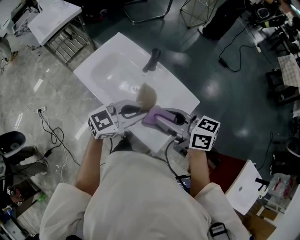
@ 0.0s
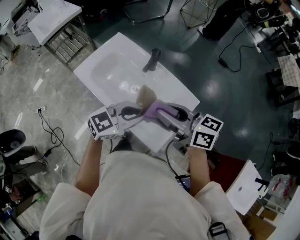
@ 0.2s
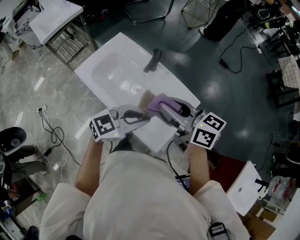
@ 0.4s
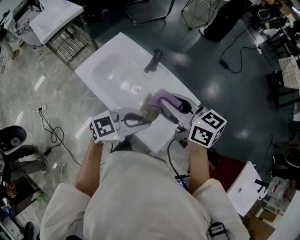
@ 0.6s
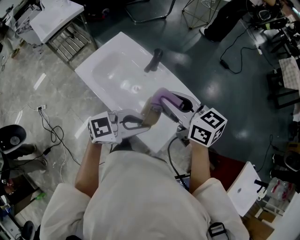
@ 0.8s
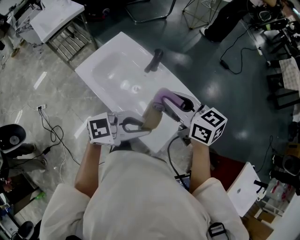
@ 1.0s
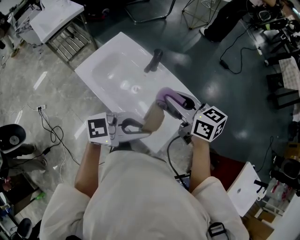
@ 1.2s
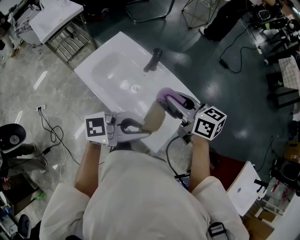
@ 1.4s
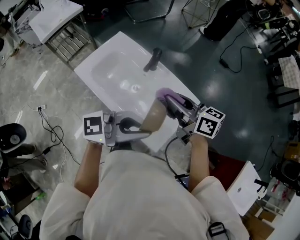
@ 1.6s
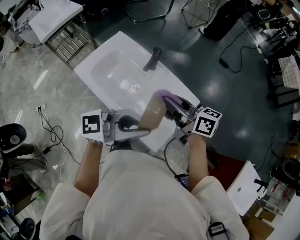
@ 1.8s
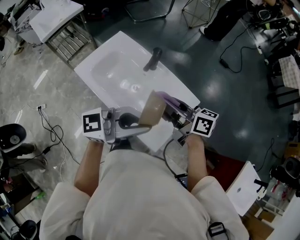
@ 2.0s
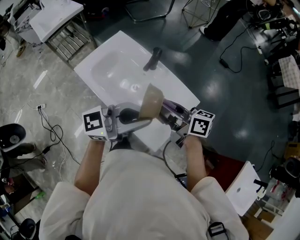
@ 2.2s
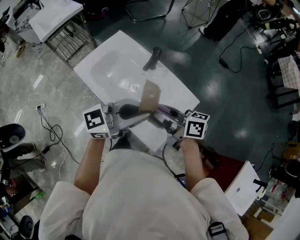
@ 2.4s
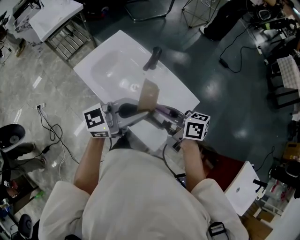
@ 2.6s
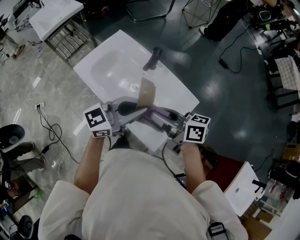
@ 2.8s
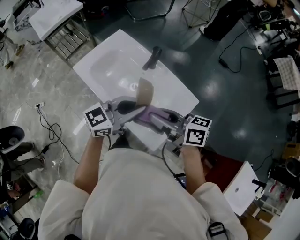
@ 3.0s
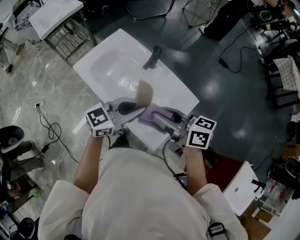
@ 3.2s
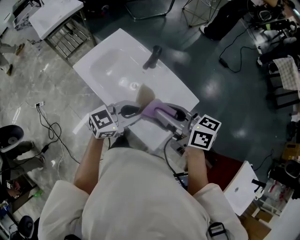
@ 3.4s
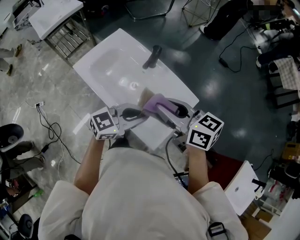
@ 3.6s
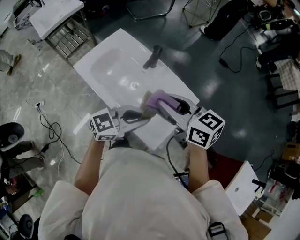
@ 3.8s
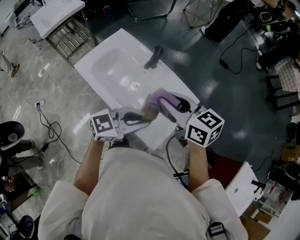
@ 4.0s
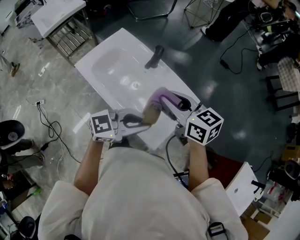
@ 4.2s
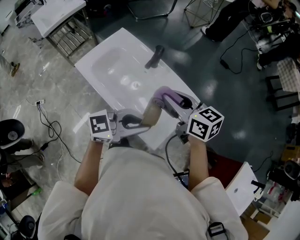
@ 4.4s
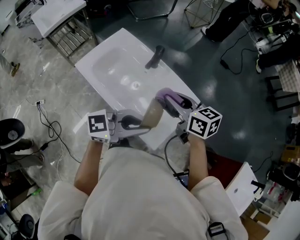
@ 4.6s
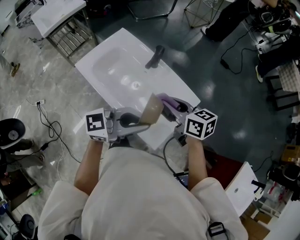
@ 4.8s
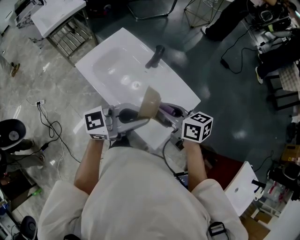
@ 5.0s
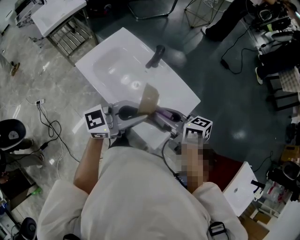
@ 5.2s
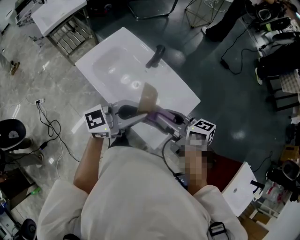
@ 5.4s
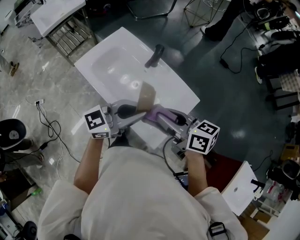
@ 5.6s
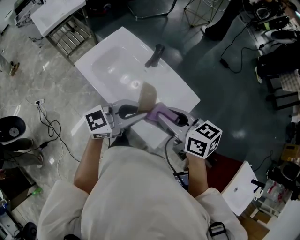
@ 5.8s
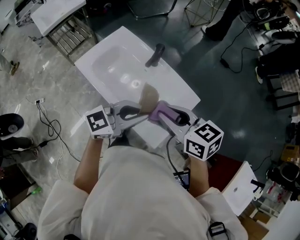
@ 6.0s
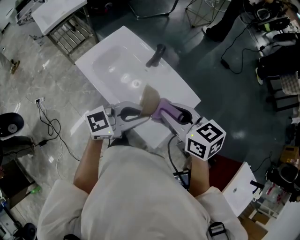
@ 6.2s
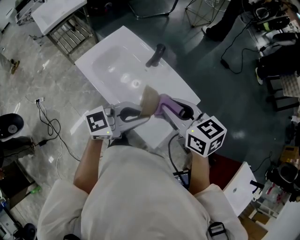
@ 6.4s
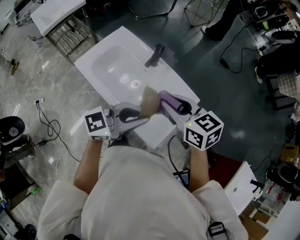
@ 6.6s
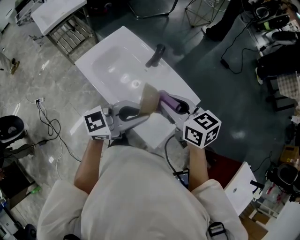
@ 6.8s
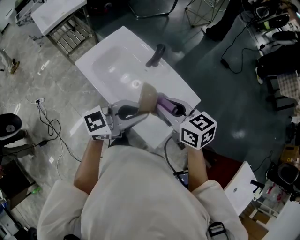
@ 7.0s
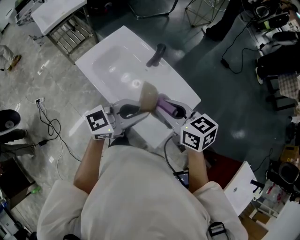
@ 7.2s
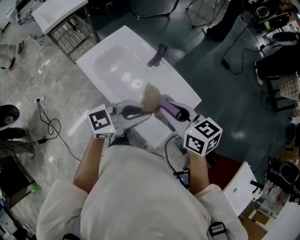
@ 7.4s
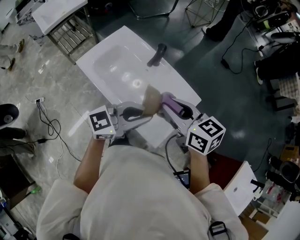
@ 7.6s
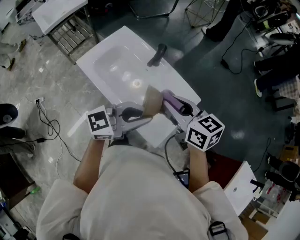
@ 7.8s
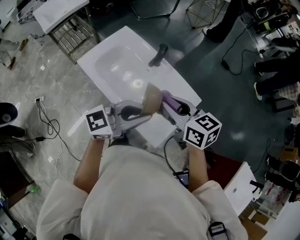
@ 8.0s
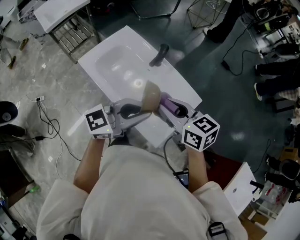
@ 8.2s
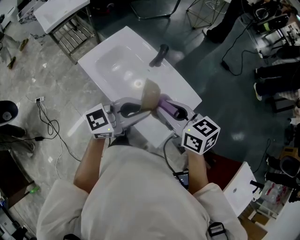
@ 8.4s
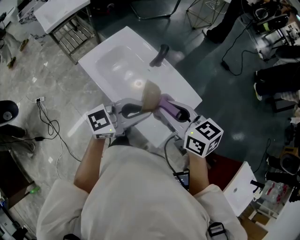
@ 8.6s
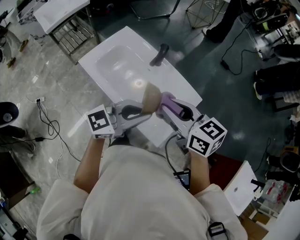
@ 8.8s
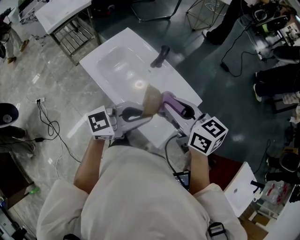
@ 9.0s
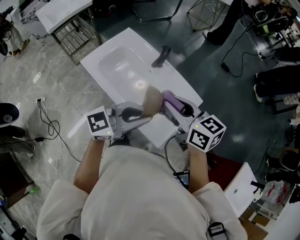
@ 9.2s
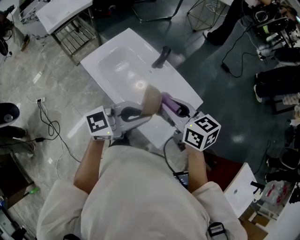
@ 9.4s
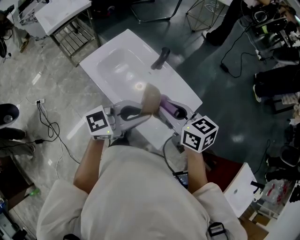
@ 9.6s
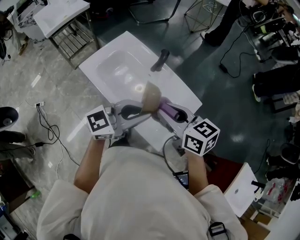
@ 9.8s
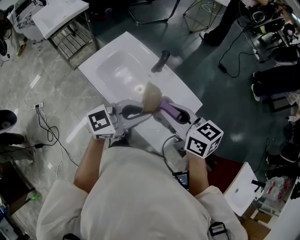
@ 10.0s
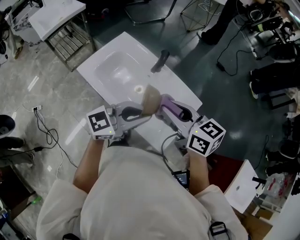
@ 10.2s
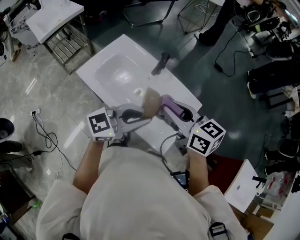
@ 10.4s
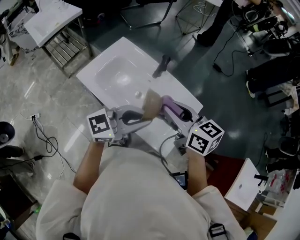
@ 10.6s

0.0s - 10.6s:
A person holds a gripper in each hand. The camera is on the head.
0.0s - 1.6s: The left gripper shifts roughly 10 cm upward, and rotates about 30 degrees. The right gripper shifts by some 5 cm.
1.6s - 3.0s: The left gripper ends up some 10 cm from where it was, and swivels approximately 30 degrees. Meanwhile the right gripper shifts by some 10 cm.
3.0s - 4.6s: The left gripper shifts by some 10 cm. The right gripper ends up approximately 10 cm from where it was, and changes its angle by about 30 degrees.
4.6s - 6.0s: The right gripper changes place by some 10 cm.
6.0s - 9.0s: There are only small adjustments of the grippers.
9.0s - 10.6s: Both grippers travel together to the left, some 5 cm.

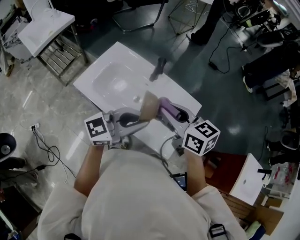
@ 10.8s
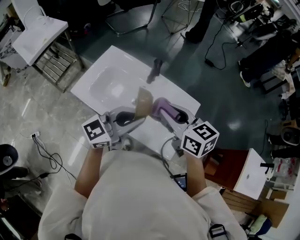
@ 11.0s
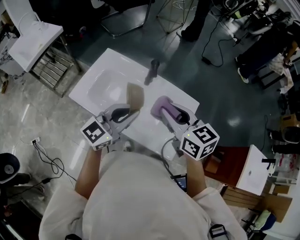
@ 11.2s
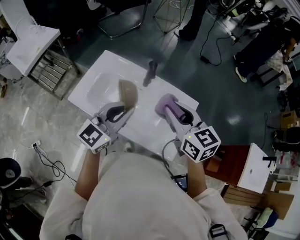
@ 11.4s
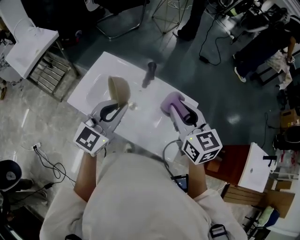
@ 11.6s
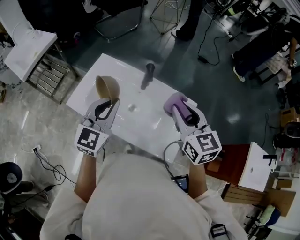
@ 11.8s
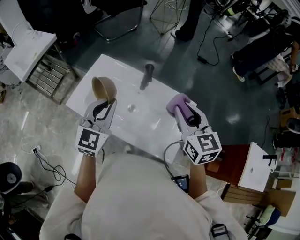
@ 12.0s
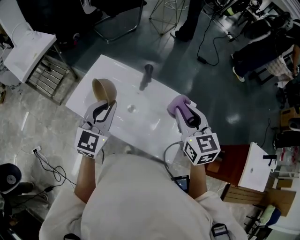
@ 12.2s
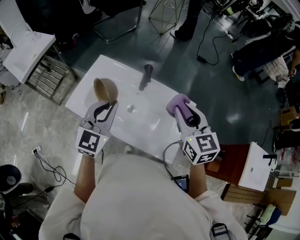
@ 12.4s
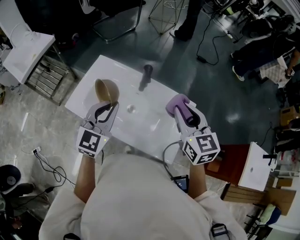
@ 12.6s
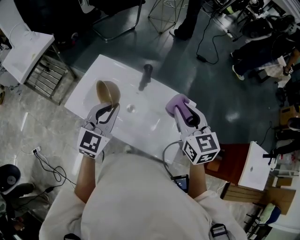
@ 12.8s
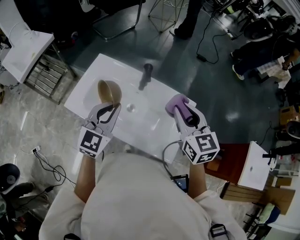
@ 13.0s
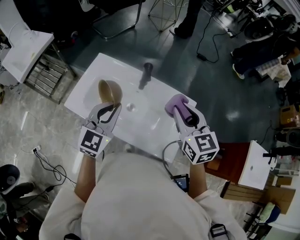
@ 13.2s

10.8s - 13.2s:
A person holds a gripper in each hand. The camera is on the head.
10.8s - 12.0s: The right gripper shifts approximately 10 cm to the right and forward, and swivels about 30 degrees; the left gripper travels forward and to the left by approximately 15 cm, and changes its angle by approximately 50 degrees.
12.0s - 13.2s: The grippers stay close to where they were, moving slightly.

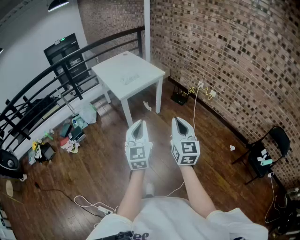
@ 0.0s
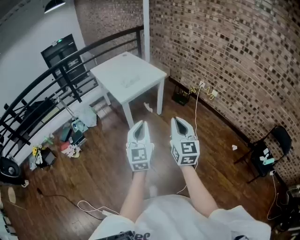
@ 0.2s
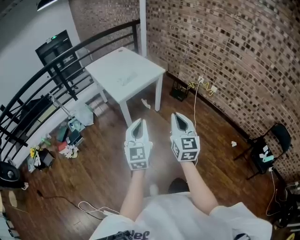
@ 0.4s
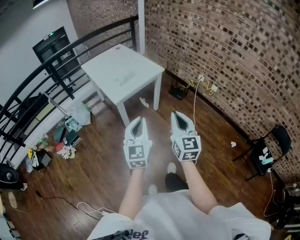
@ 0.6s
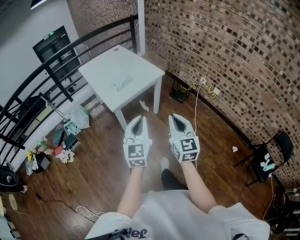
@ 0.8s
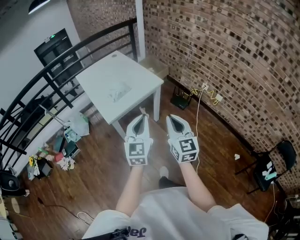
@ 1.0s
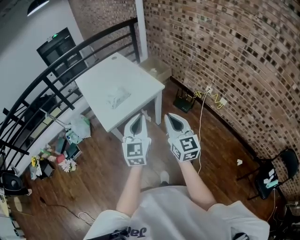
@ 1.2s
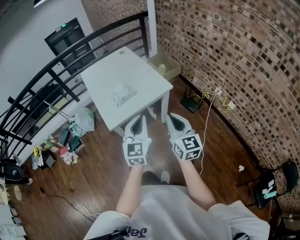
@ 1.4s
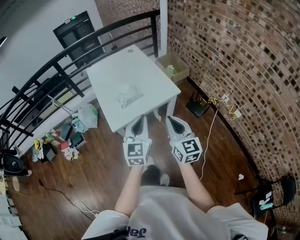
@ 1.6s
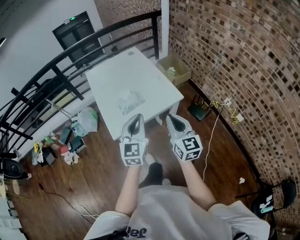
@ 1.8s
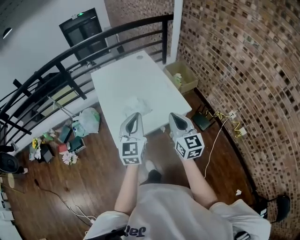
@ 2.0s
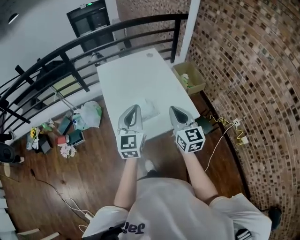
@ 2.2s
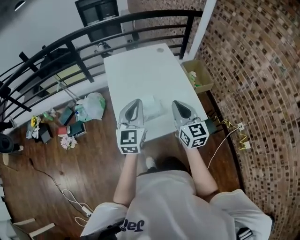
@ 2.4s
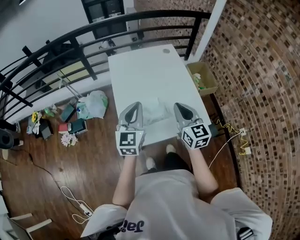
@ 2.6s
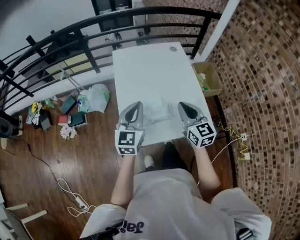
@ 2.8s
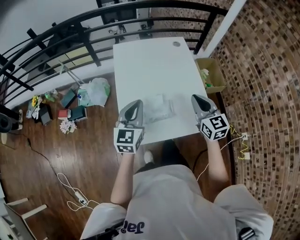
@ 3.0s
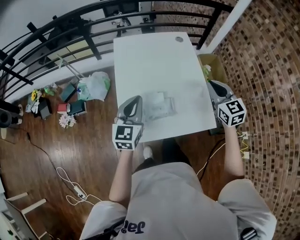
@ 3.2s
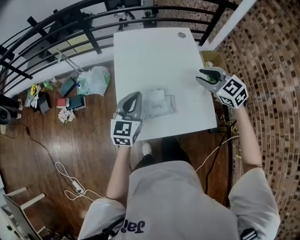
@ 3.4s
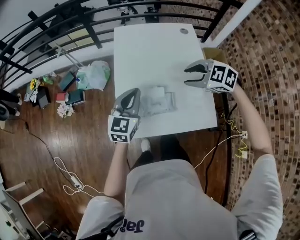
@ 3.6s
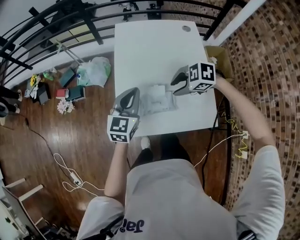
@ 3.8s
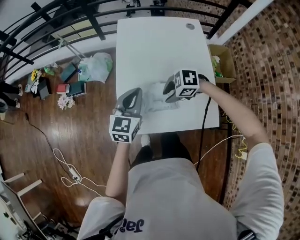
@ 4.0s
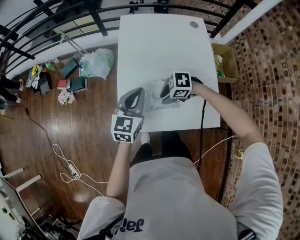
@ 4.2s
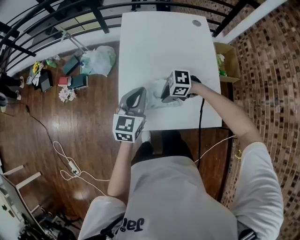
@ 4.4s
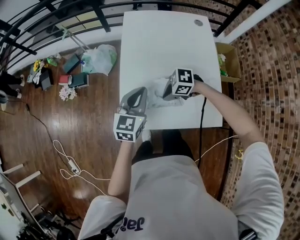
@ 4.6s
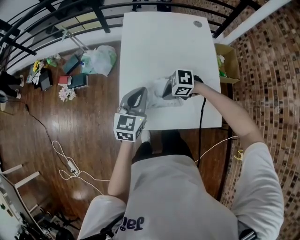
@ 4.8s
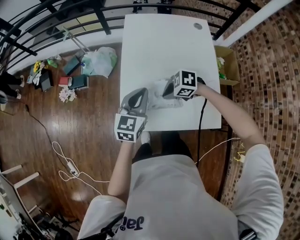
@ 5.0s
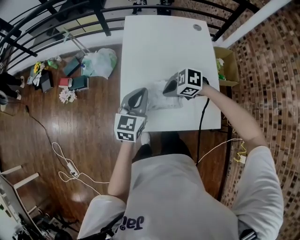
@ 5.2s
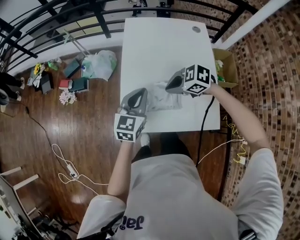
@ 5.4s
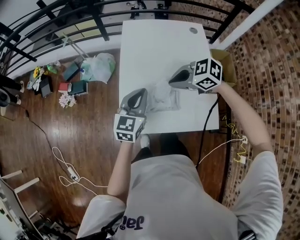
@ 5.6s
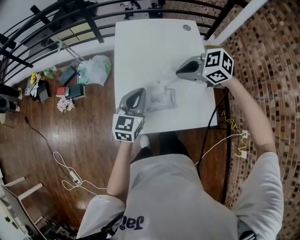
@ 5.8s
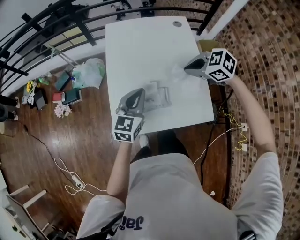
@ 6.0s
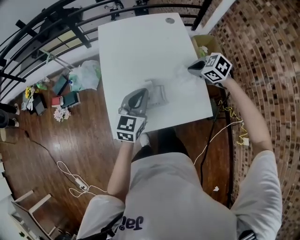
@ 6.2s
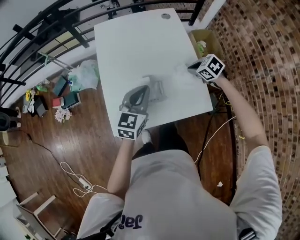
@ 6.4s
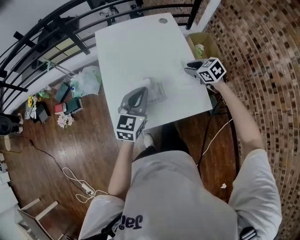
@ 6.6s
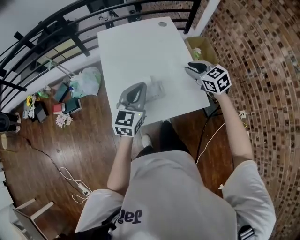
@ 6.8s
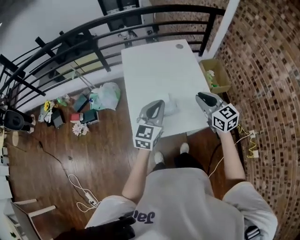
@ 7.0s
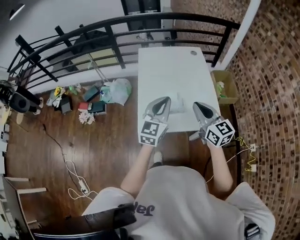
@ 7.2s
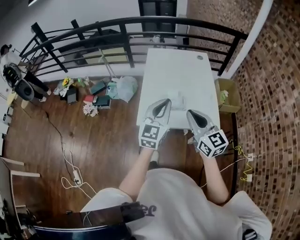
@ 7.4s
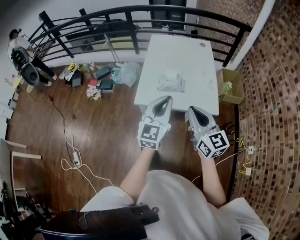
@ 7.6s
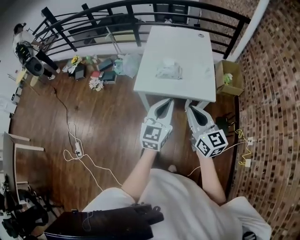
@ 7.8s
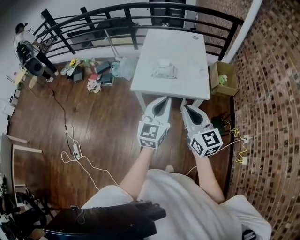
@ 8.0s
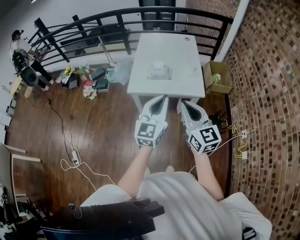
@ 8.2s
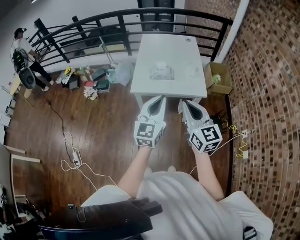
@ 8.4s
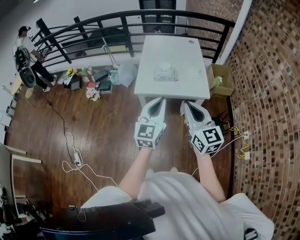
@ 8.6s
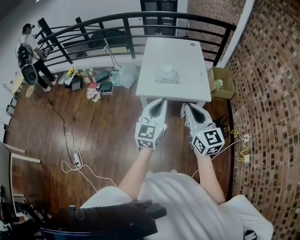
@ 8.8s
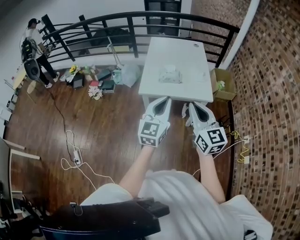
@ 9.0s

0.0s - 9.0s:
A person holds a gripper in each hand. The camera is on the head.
0.0s - 1.6s: The two grippers travel together, forward, roughly 50 cm. The right gripper swivels some 20 degrees.
1.6s - 3.0s: The left gripper heads forward and to the left, covering about 35 cm, while the right gripper shifts approximately 40 cm forward, and swivels about 30 degrees.
3.0s - 4.4s: The right gripper moves downward, roughly 20 cm, points its fingers some 30 degrees further downward, and opens, then closes again. Meanwhile the left gripper is displaced downward by roughly 10 cm.
4.4s - 6.0s: The right gripper heads upward, covering about 15 cm, and rotates about 40 degrees.
6.0s - 7.6s: The right gripper ends up some 40 cm from where it was, tips its fingers upward by roughly 50 degrees, and opens and closes again. The left gripper shifts by approximately 30 cm, and rotates approximately 20 degrees.
7.6s - 9.0s: Both grippers move backward, approximately 15 cm.

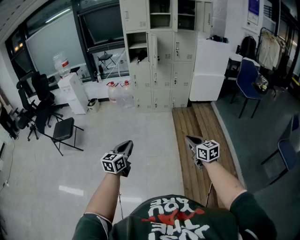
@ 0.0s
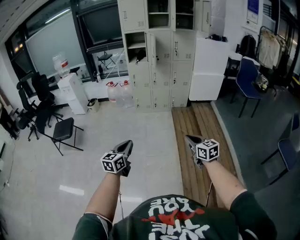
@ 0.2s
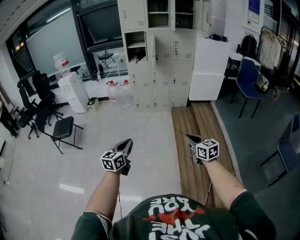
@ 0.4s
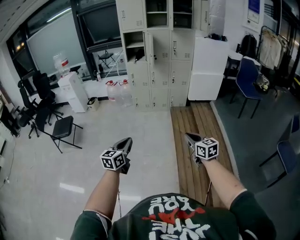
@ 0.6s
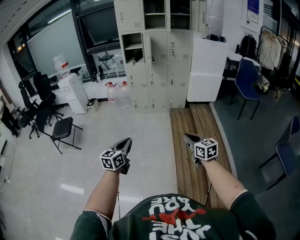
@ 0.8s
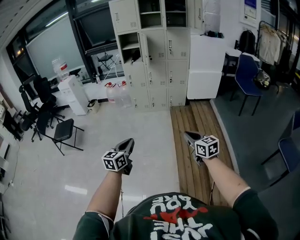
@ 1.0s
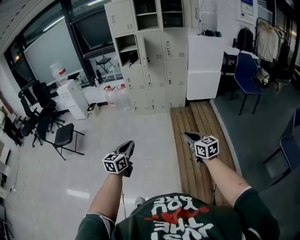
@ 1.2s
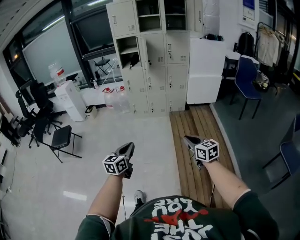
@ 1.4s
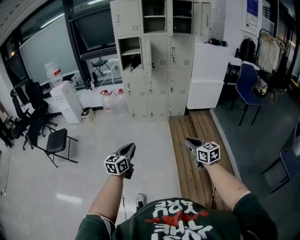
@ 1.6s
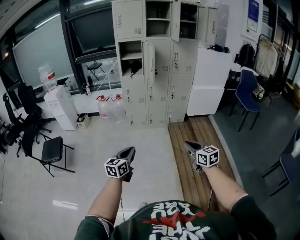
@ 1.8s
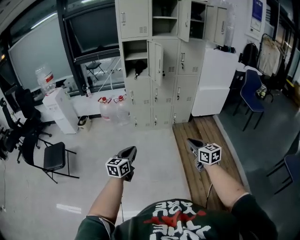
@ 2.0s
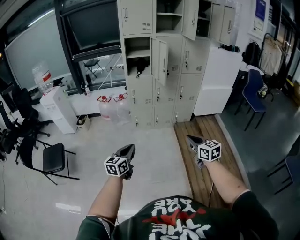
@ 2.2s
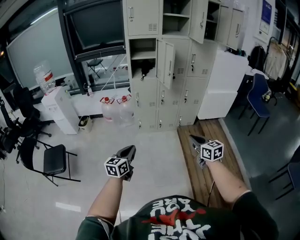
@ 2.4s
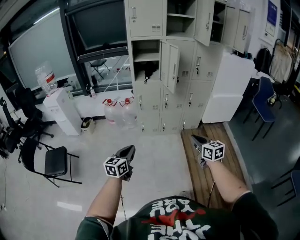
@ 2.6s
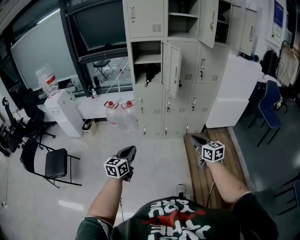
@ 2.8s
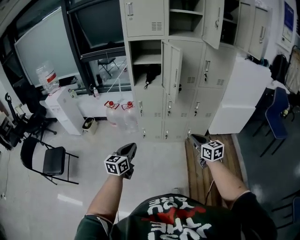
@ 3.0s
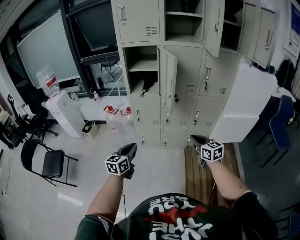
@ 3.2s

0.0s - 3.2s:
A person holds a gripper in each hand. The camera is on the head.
0.0s - 1.6s: The right gripper moves forward, approximately 15 cm, while the left gripper is displaced forward and to the right by some 15 cm.
1.6s - 3.2s: The two grippers travel together, forward, some 60 cm.
